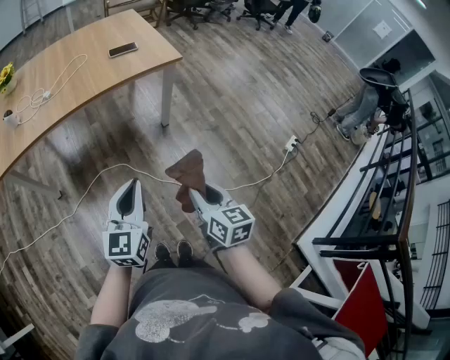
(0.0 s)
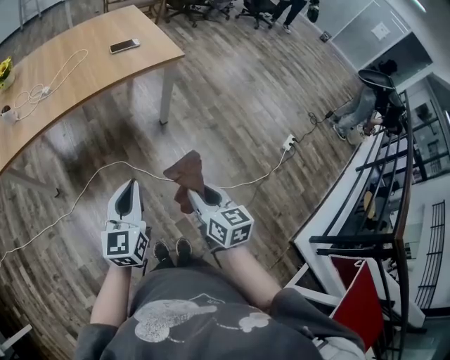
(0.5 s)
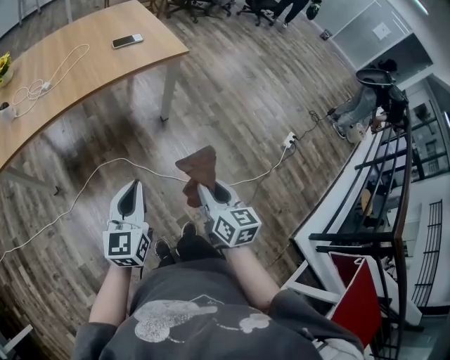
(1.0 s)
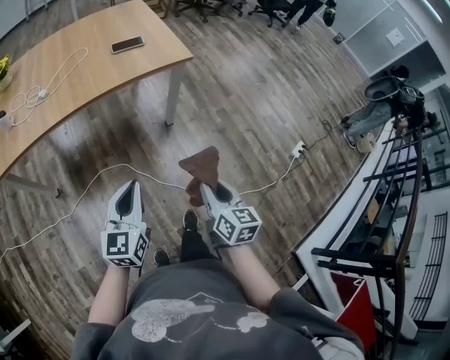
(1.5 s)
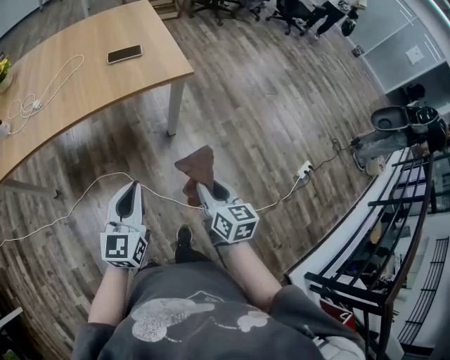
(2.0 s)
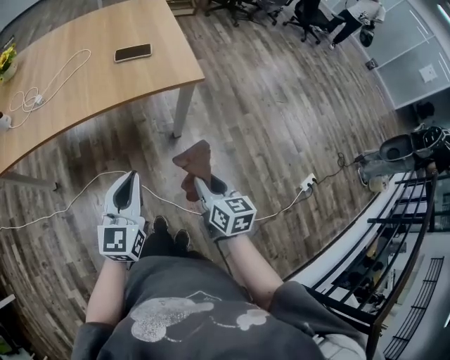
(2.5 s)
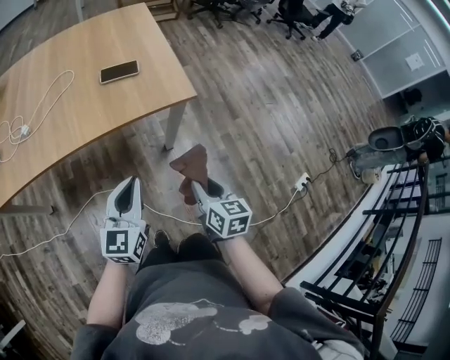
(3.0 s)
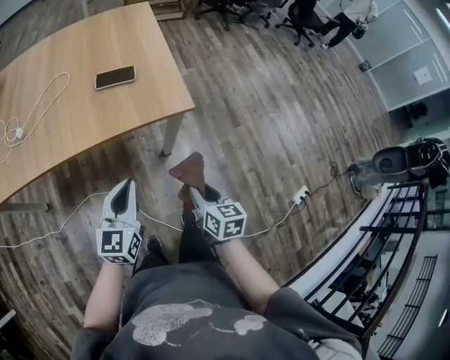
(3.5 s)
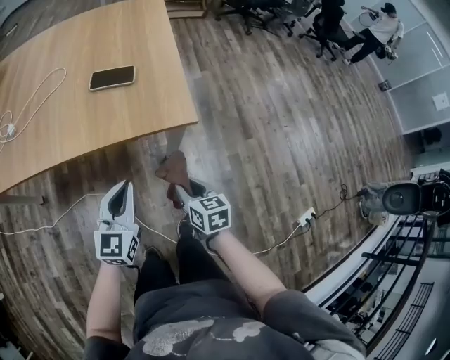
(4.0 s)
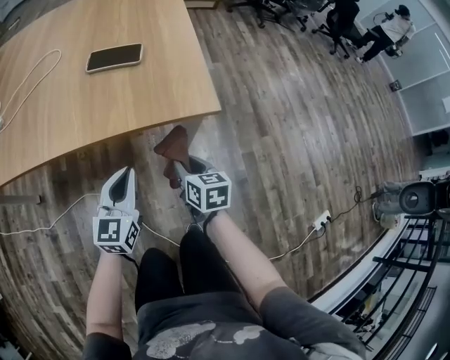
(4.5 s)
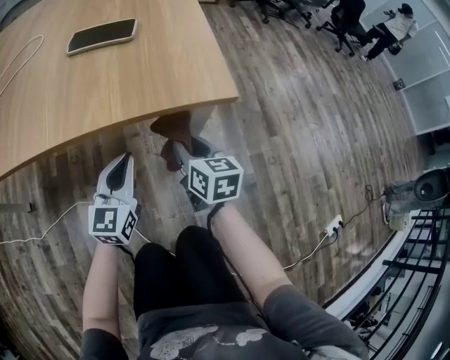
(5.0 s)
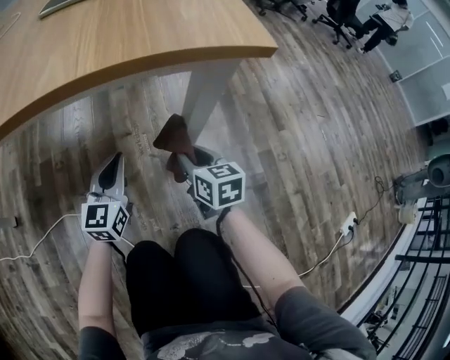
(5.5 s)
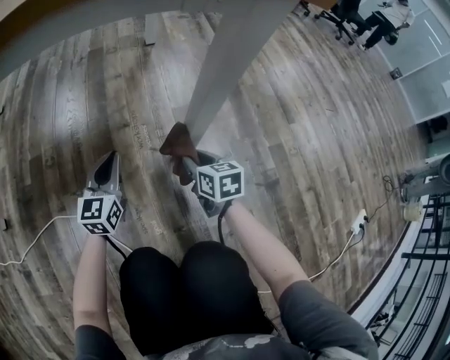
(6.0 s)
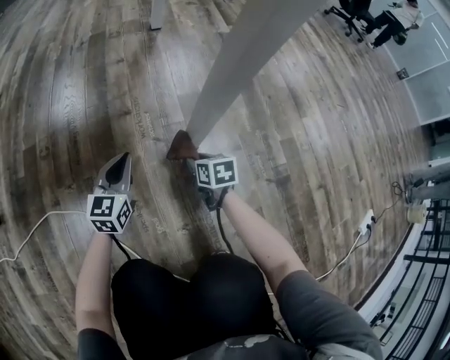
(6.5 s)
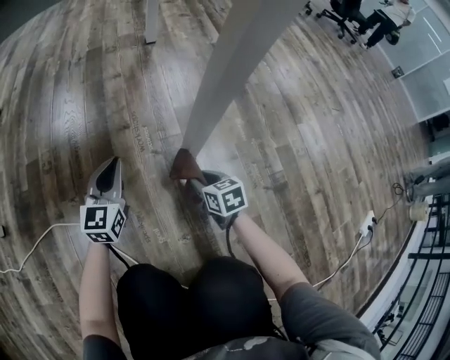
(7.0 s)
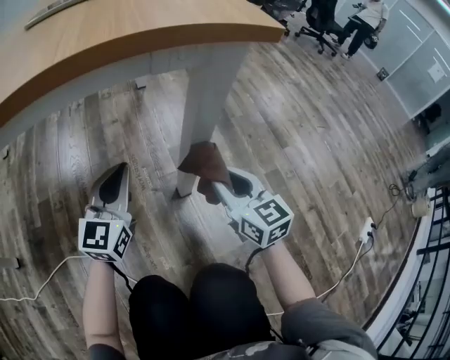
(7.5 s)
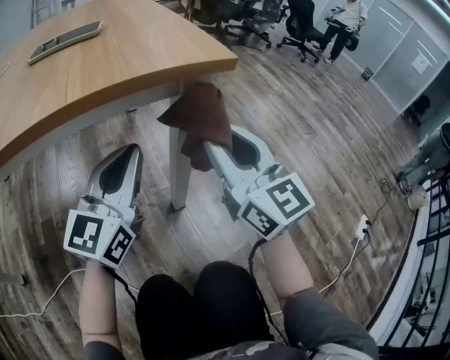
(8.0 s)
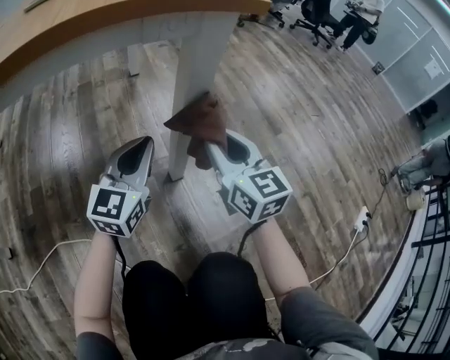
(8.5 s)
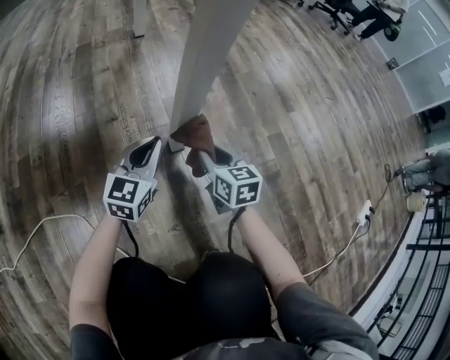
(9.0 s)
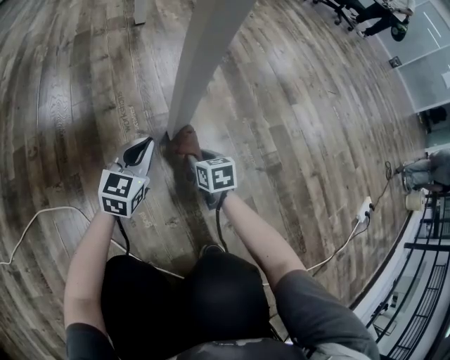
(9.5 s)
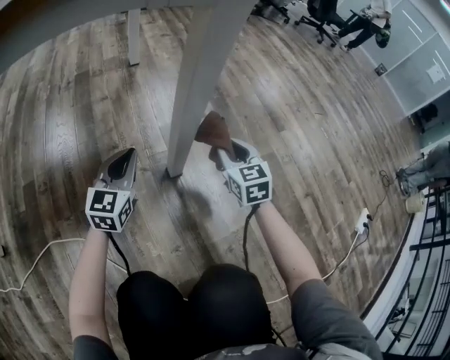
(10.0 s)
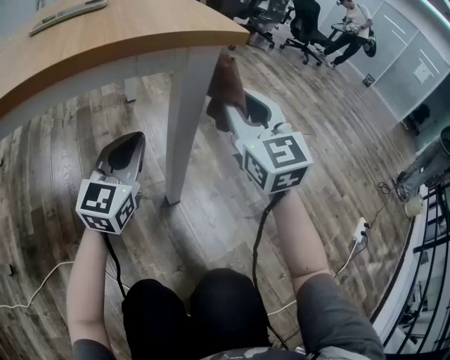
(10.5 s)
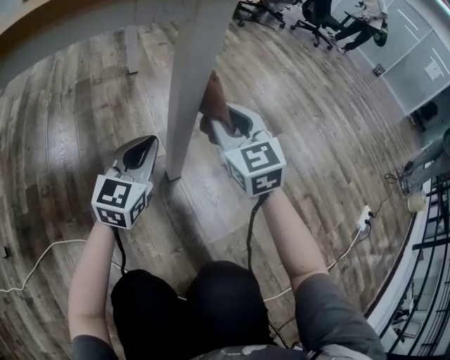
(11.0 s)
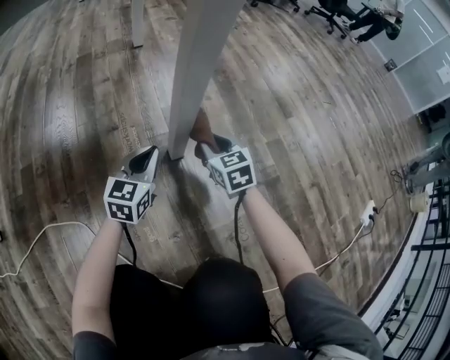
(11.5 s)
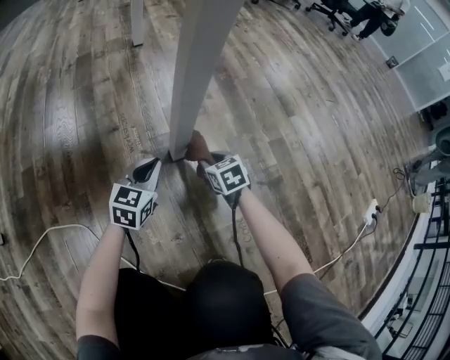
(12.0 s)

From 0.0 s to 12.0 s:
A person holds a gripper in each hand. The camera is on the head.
From 0.0 s to 2.0 s: The grippers both shift forward by roughly 20 cm.
From 2.0 s to 4.0 s: The left gripper heads forward, covering about 25 cm. Meanwhile the right gripper is displaced forward and downward by some 30 cm, and rotates about 20 degrees.
From 4.0 s to 6.0 s: The grippers both shift downward by some 50 cm.
From 6.0 s to 8.0 s: The two grippers go roughly 35 cm upward. The right gripper tilts its fingers roughly 40 degrees upward; the left gripper changes its angle by roughly 30 degrees.
From 8.0 s to 10.0 s: The grippers both shift downward by approximately 30 cm. The right gripper points its fingers roughly 30 degrees further downward. The left gripper rotates about 20 degrees.
From 10.0 s to 12.0 s: The right gripper goes some 15 cm downward, and rotates some 30 degrees; the left gripper goes approximately 5 cm to the right, and goes upward and returns, approximately 20 cm each way.

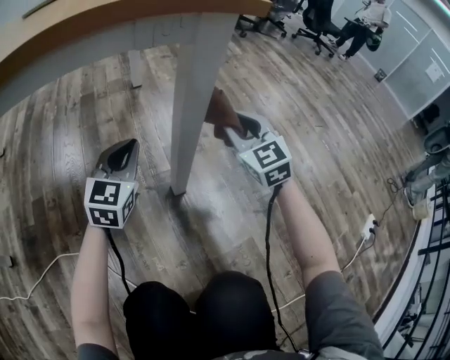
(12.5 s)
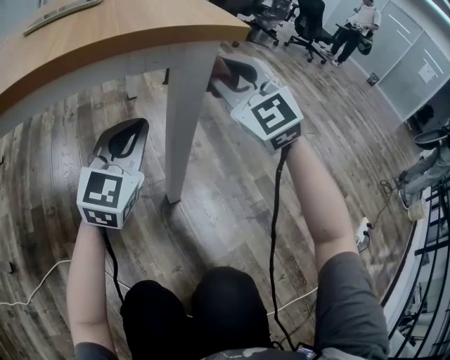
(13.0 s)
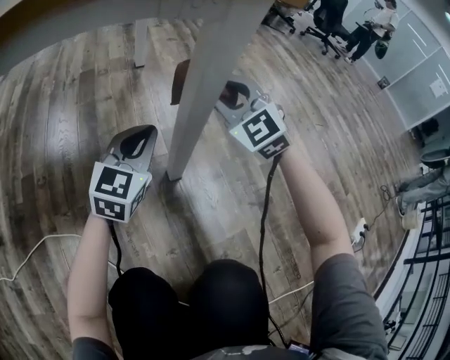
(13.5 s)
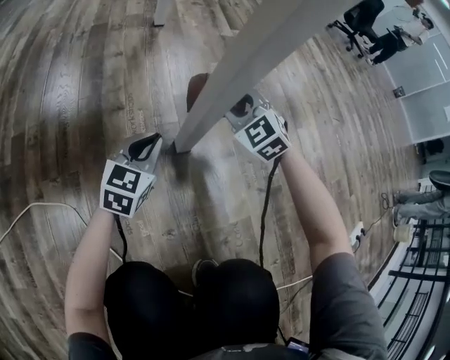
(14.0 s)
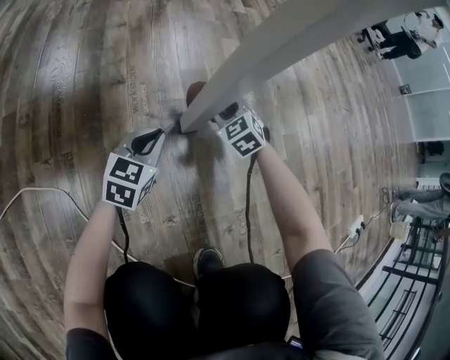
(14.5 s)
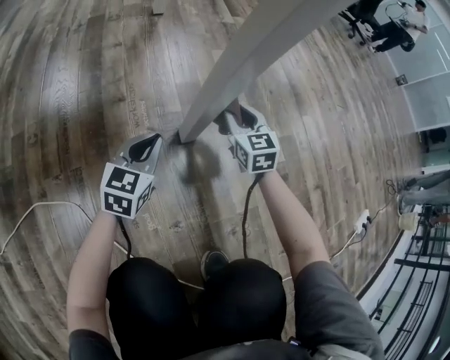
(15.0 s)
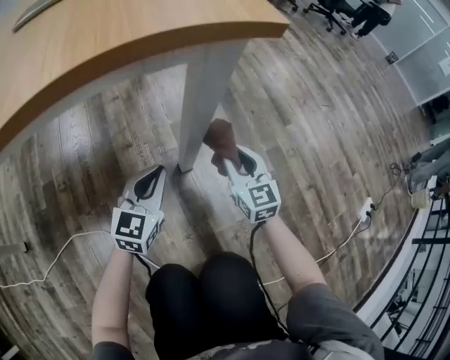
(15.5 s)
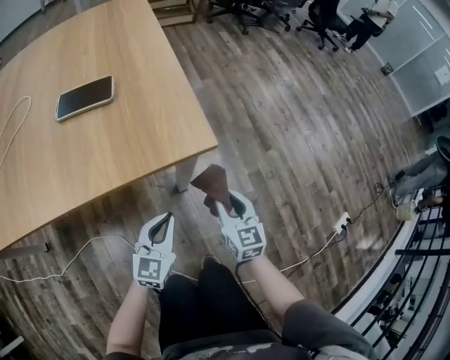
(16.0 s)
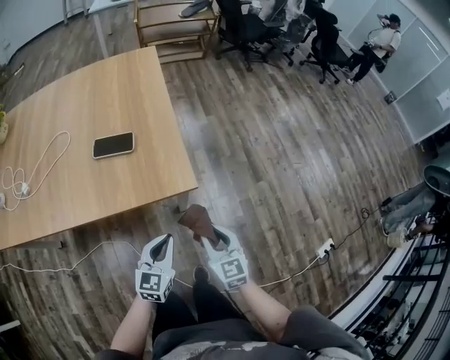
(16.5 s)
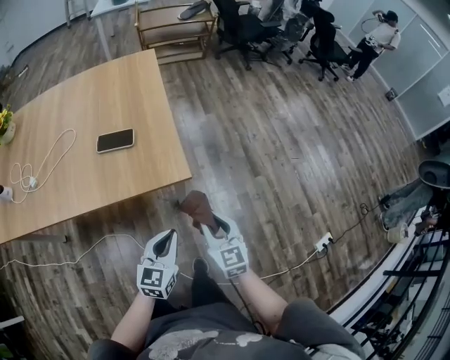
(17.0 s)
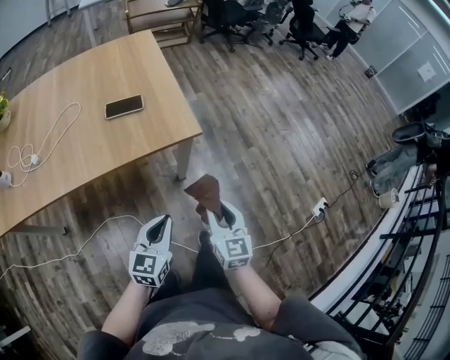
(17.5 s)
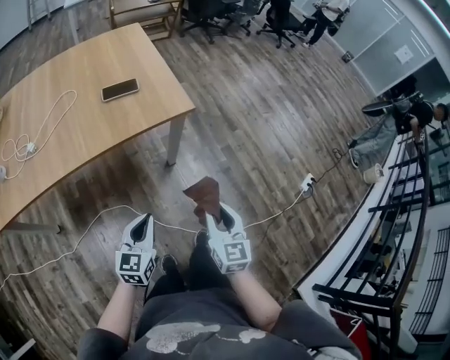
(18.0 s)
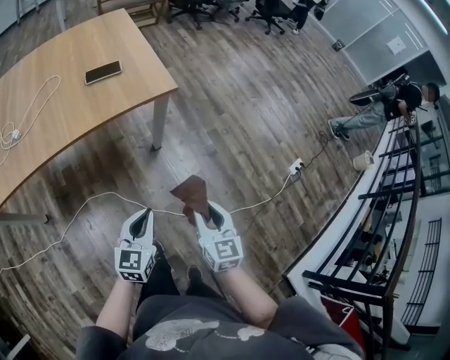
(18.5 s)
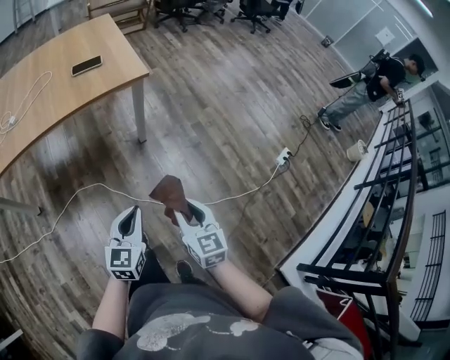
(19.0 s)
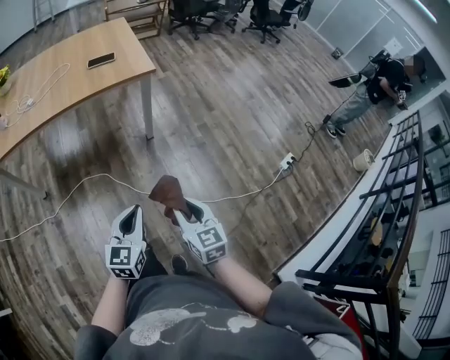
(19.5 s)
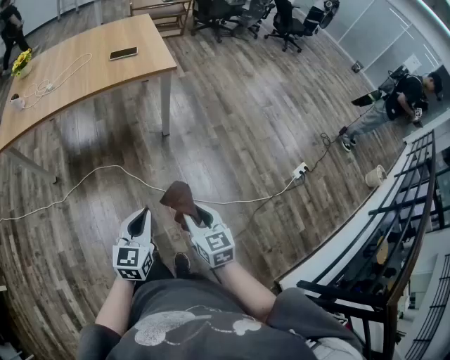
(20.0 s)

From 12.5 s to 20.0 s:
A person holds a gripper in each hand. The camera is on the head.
From 12.5 s to 14.5 s: Both grippers move downward, approximately 30 cm. The right gripper tilts its fingers about 30 degrees downward. The left gripper rotates roughly 20 degrees.
From 14.5 s to 16.5 s: Both grippers move upward, about 60 cm. The right gripper rotates approximately 40 degrees.
From 16.5 s to 18.0 s: The left gripper travels backward and to the left by some 25 cm, while the right gripper is displaced backward by some 25 cm, and swivels some 30 degrees.
From 18.0 s to 20.0 s: The right gripper travels backward by about 30 cm, and changes its angle by roughly 20 degrees. Meanwhile the left gripper shifts approximately 35 cm backward and to the right.

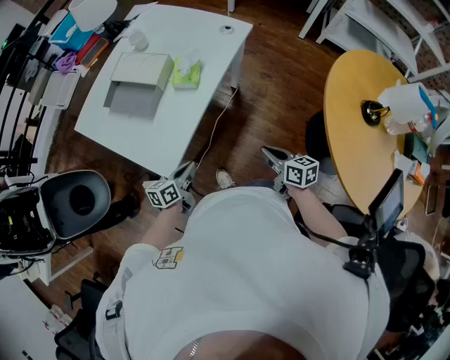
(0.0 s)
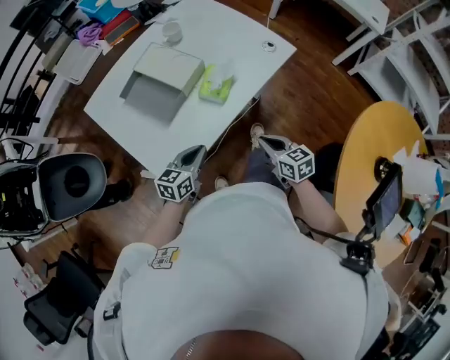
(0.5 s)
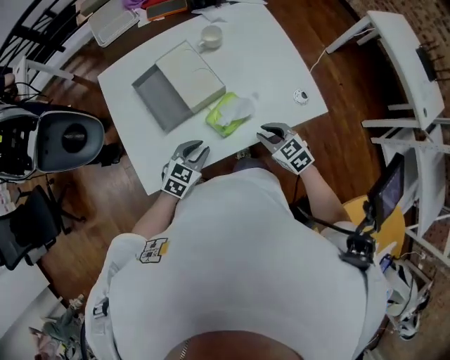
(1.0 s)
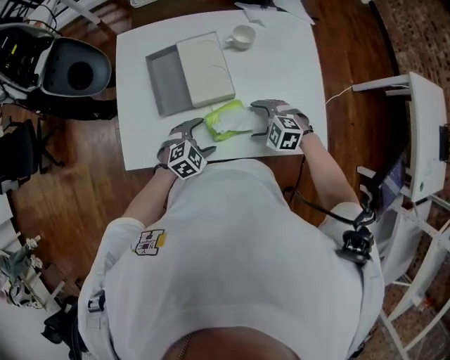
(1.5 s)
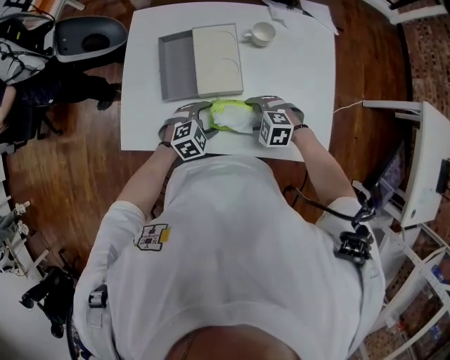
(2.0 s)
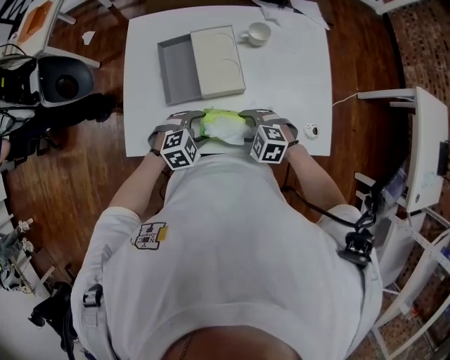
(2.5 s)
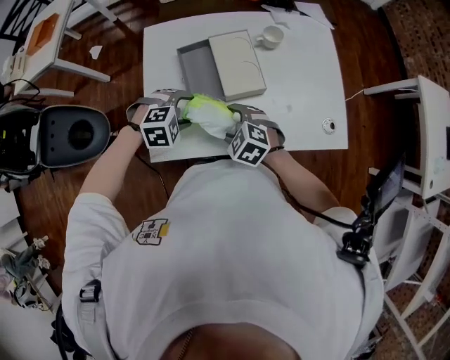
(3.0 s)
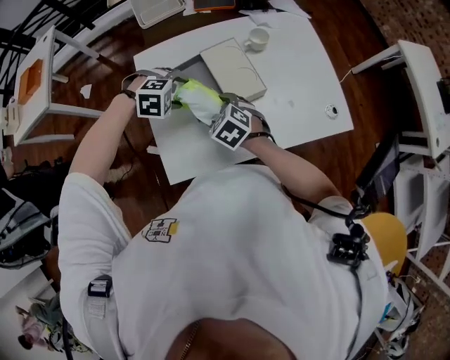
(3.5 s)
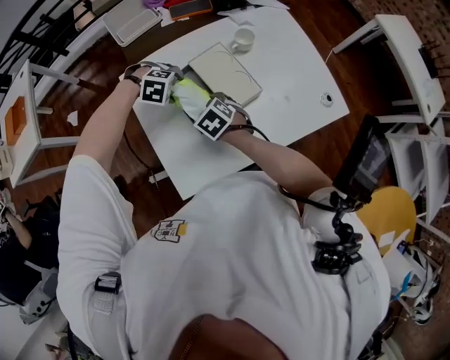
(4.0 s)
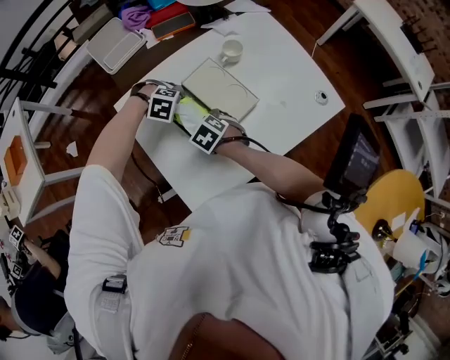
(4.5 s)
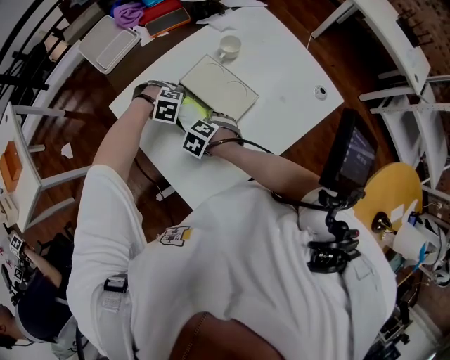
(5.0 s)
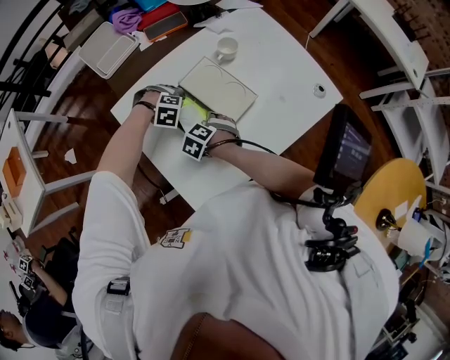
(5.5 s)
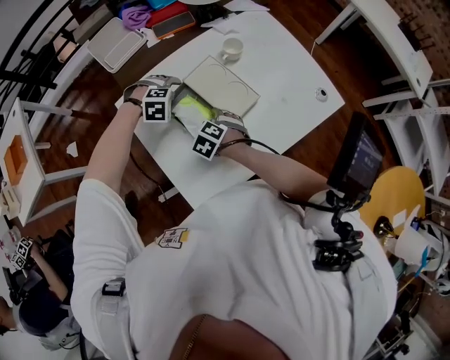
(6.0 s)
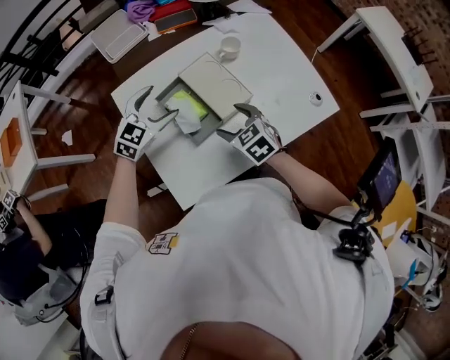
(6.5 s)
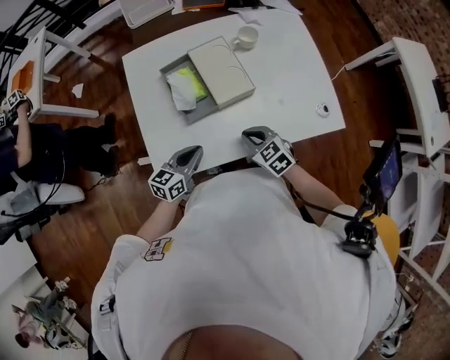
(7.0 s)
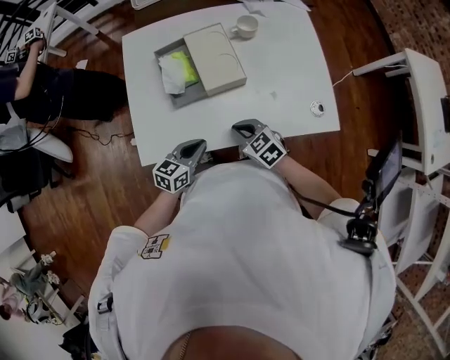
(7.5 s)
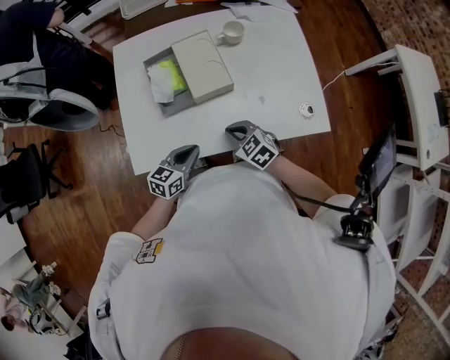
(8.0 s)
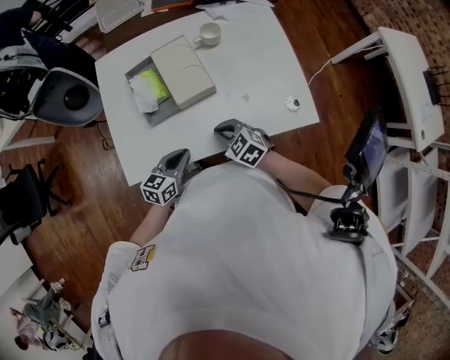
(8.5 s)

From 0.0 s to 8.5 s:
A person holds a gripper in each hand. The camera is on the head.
From 0.0 s to 2.0 s: The left gripper shifts by some 30 cm, angles its fingers downward, by about 40 degrees, and opens up. Meanwhile the right gripper ends up about 40 cm from where it was, angles its fingers downward, by about 30 degrees, and opens.
From 2.0 s to 4.0 s: The right gripper ends up some 25 cm from where it was, and rolls clockwise, seen from behind, by roughly 60 degrees. Meanwhile the left gripper moves roughly 25 cm, and rotates around the line of its fingers by about 60 degrees, clockwise from behind.
From 4.0 s to 6.5 s: The right gripper shifts by about 10 cm. The left gripper heads upward, covering some 10 cm, and angles its fingers upward, by approximately 50 degrees.
From 6.5 s to 8.5 s: The right gripper heads backward, to the right and downward, covering approximately 15 cm, turns by about 30 degrees, and closes. Meanwhile the left gripper goes approximately 30 cm backward, downward and to the right, twists roughly 50 degrees counterclockwise, seen from behind, and closes its fingers.
